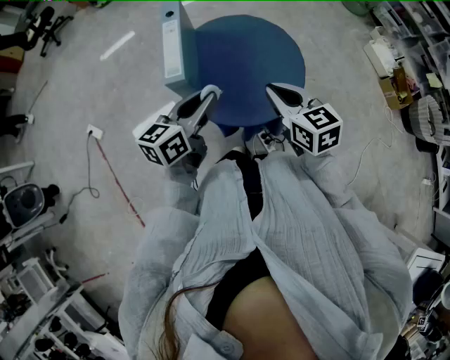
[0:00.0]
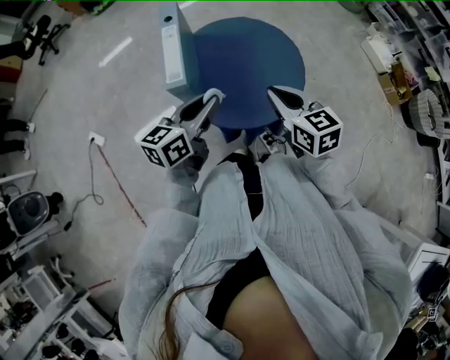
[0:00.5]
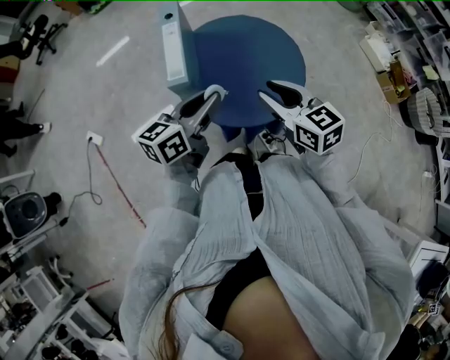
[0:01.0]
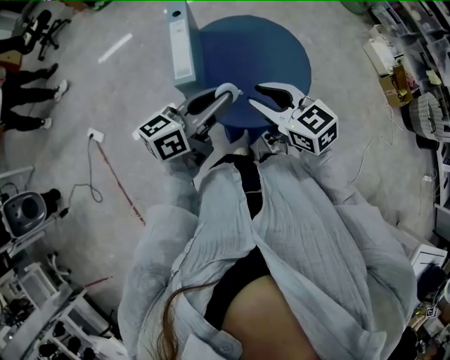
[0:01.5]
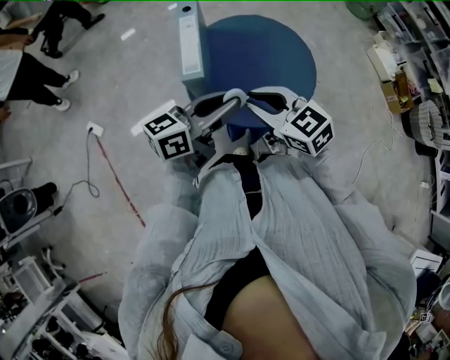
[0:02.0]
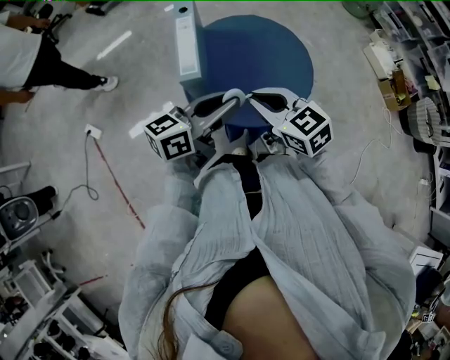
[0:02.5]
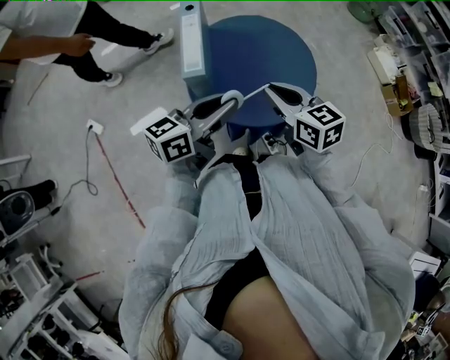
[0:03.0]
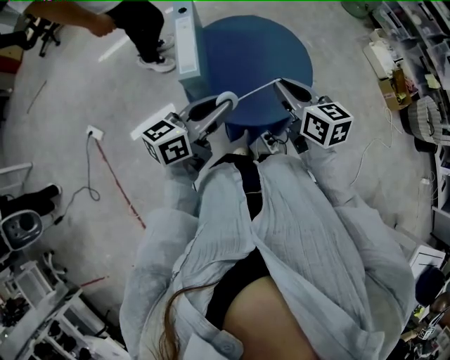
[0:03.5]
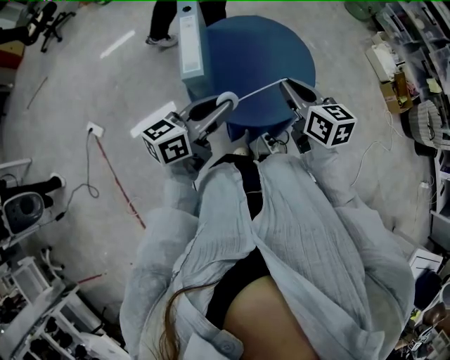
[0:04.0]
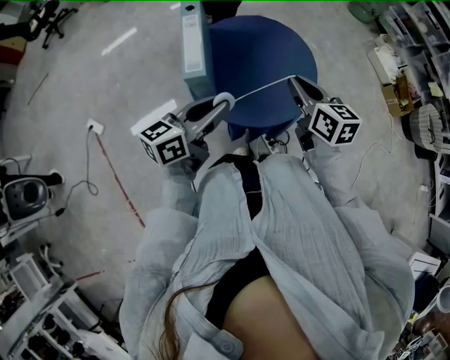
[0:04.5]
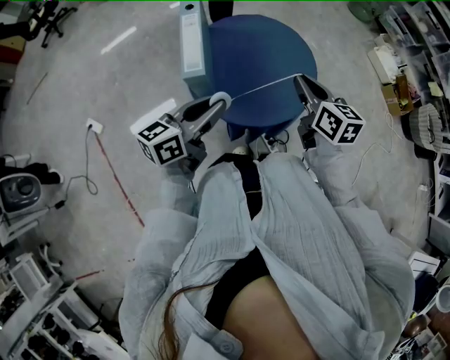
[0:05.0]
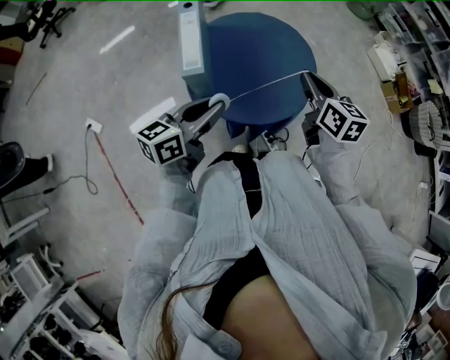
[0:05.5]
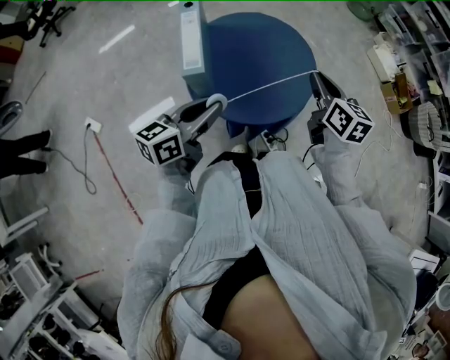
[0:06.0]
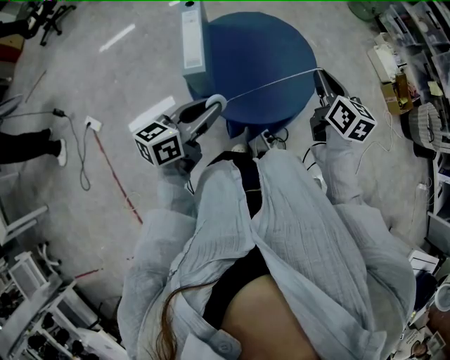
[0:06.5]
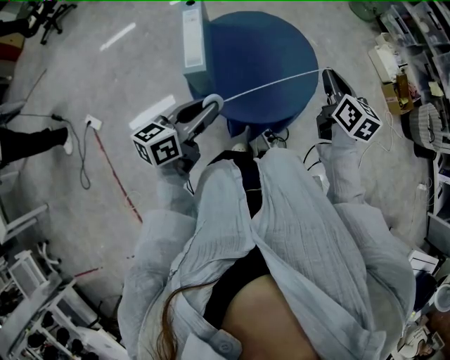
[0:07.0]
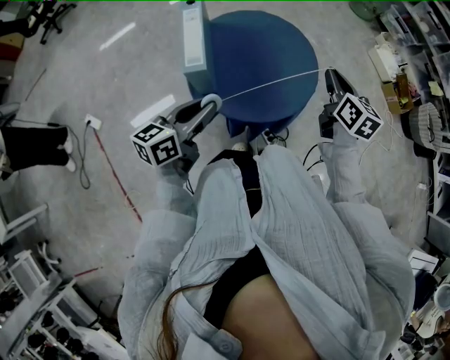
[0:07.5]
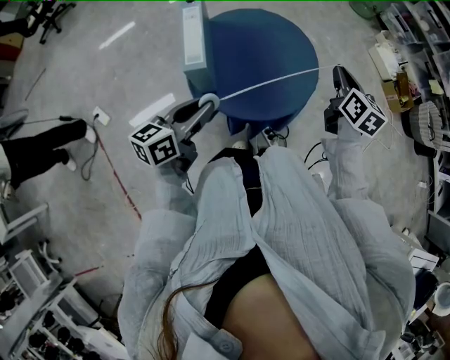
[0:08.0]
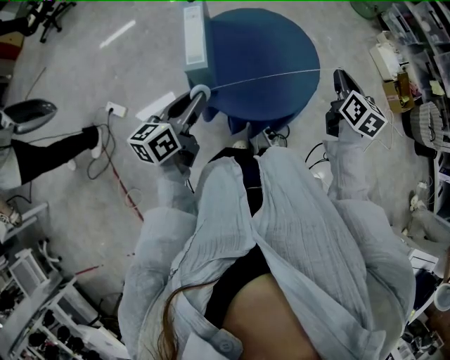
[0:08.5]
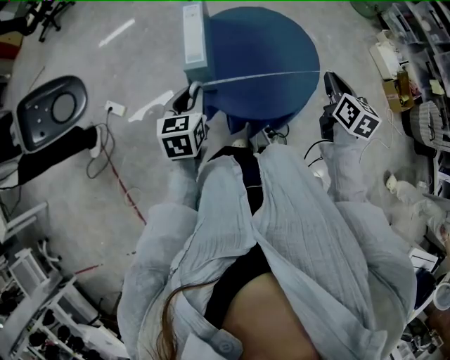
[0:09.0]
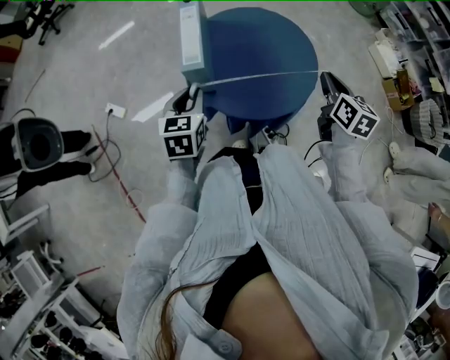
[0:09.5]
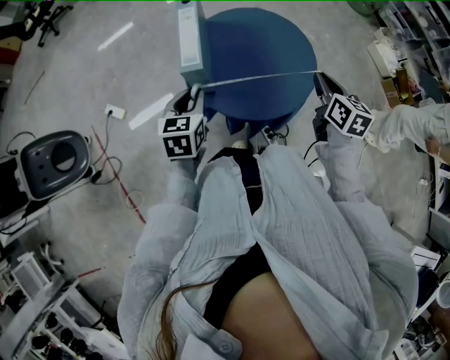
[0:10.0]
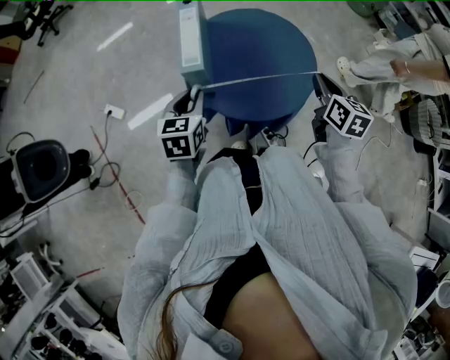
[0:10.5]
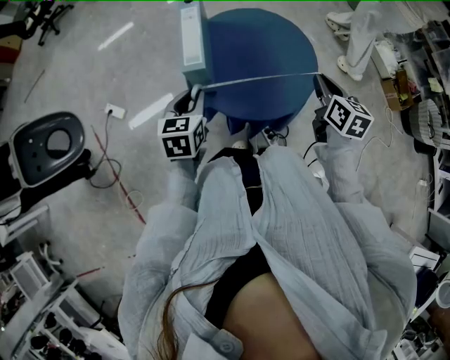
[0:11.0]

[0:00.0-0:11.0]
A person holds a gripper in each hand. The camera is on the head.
0:00.0 to 0:02.0: The left gripper turns by about 20 degrees. The right gripper moves to the left, some 10 cm, and changes its angle by about 20 degrees.
0:02.0 to 0:03.5: The right gripper is displaced to the right and forward by approximately 10 cm, and changes its angle by approximately 30 degrees.
0:03.5 to 0:05.5: The right gripper heads to the right, covering about 5 cm.
0:05.5 to 0:07.5: The right gripper goes some 5 cm to the right.
0:07.5 to 0:09.0: The left gripper goes approximately 5 cm to the left, and changes its angle by roughly 40 degrees.
0:09.0 to 0:11.0: There are only small adjustments of the grippers.

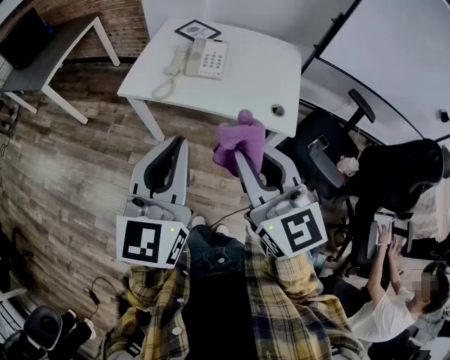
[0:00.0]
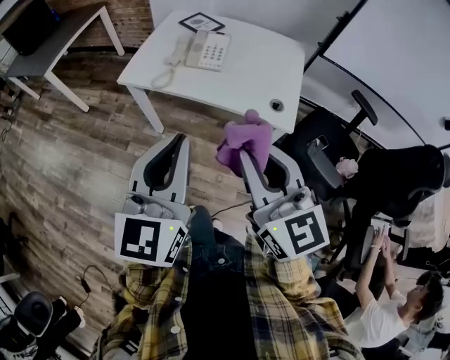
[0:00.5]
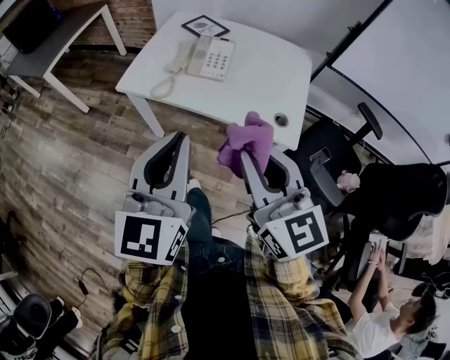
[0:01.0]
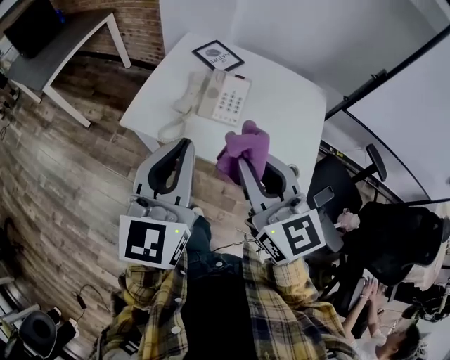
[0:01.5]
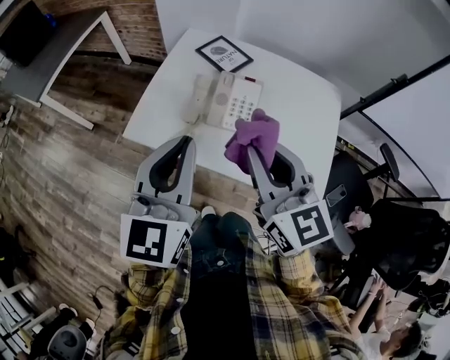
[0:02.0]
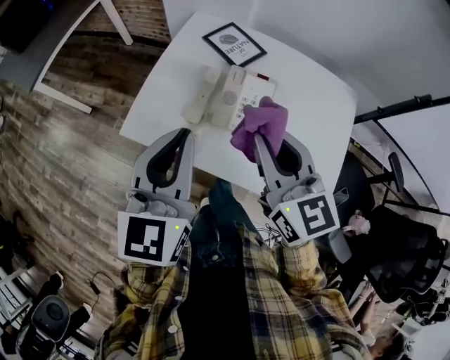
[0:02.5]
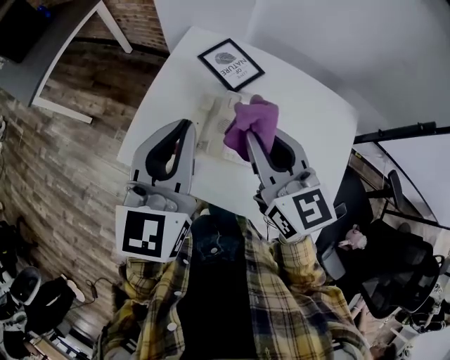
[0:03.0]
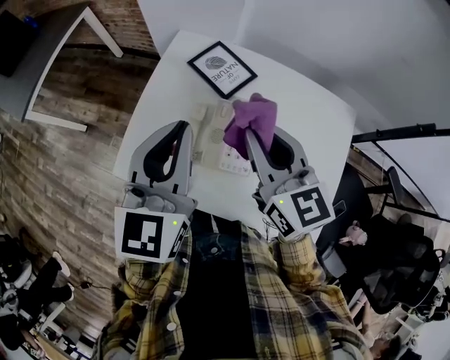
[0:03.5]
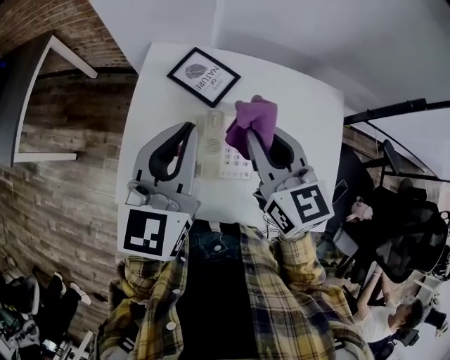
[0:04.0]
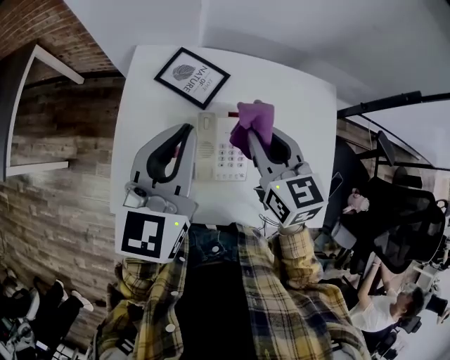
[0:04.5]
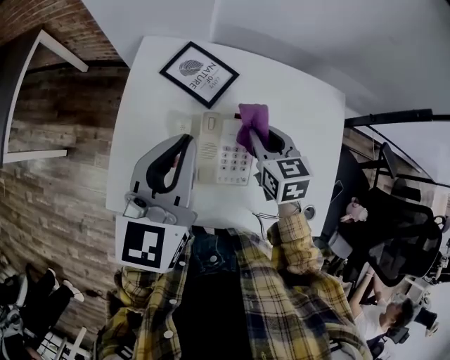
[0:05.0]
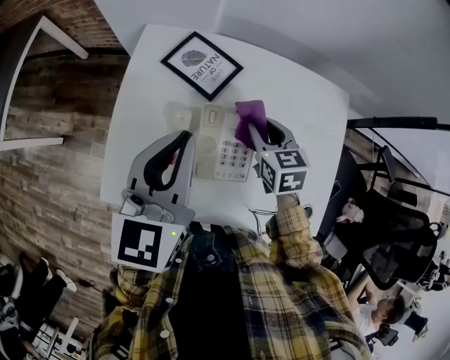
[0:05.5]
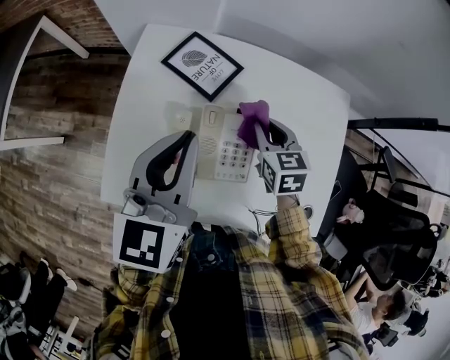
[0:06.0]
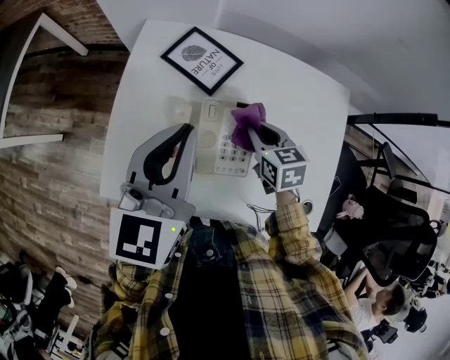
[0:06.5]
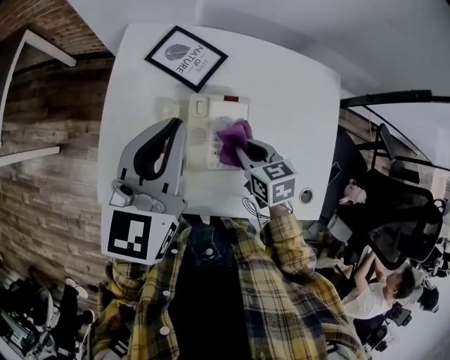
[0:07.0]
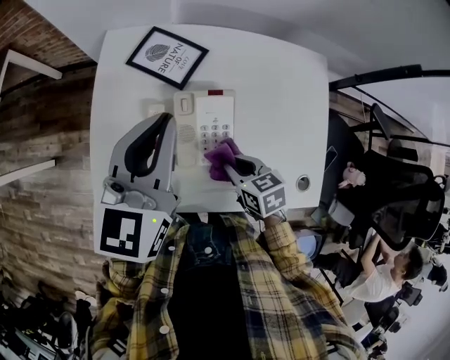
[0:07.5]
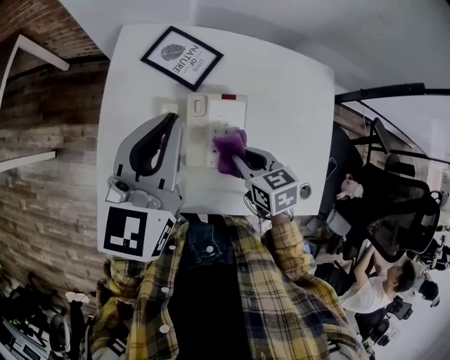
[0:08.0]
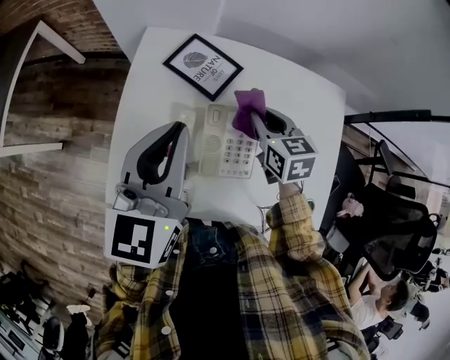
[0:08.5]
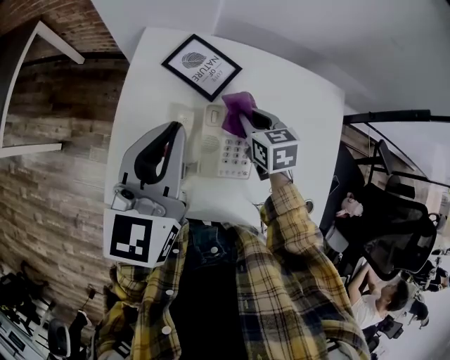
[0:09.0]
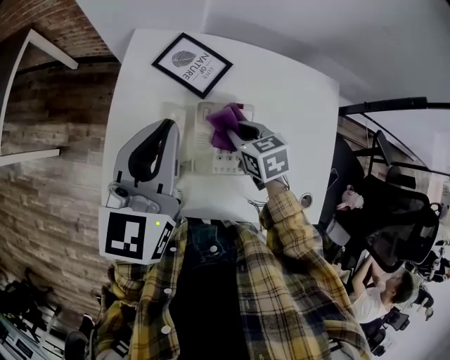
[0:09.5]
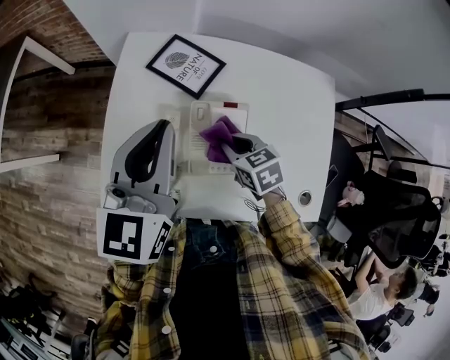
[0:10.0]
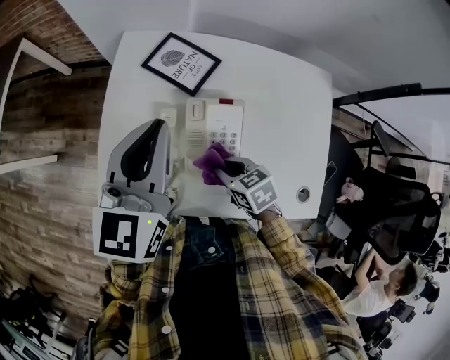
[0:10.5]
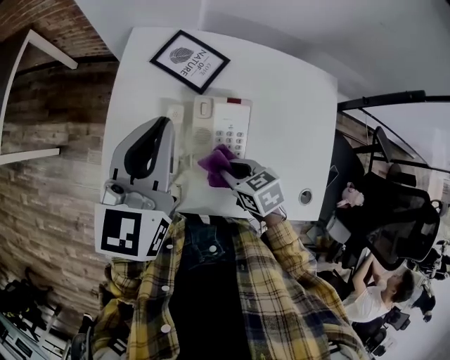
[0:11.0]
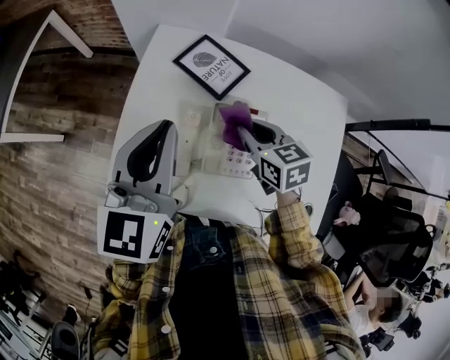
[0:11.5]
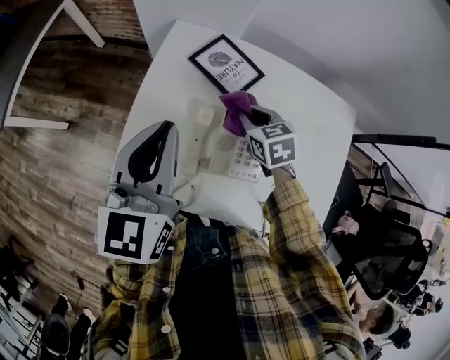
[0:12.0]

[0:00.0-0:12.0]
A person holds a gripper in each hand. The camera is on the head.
0:00.0 to 0:02.0: The two grippers go some 30 cm forward.
0:02.0 to 0:04.0: Both grippers move forward, some 25 cm.
0:04.0 to 0:06.0: The left gripper moves downward, some 5 cm. Meanwhile the right gripper shifts approximately 20 cm downward, and turns by some 30 degrees.
0:06.0 to 0:08.0: The right gripper heads backward, covering some 10 cm.
0:08.0 to 0:10.0: The right gripper is displaced forward by about 5 cm.
0:10.0 to 0:12.0: The right gripper goes about 10 cm forward, while the left gripper heads to the left, covering approximately 5 cm.

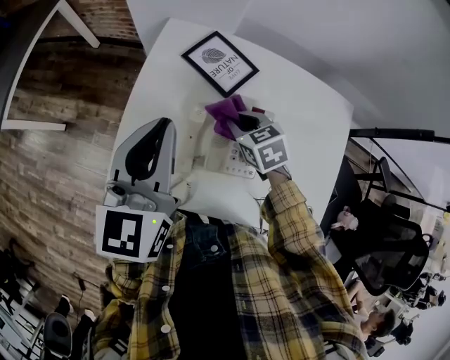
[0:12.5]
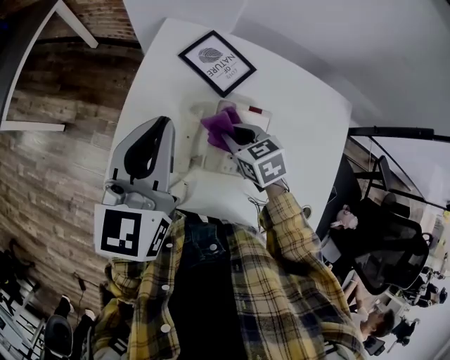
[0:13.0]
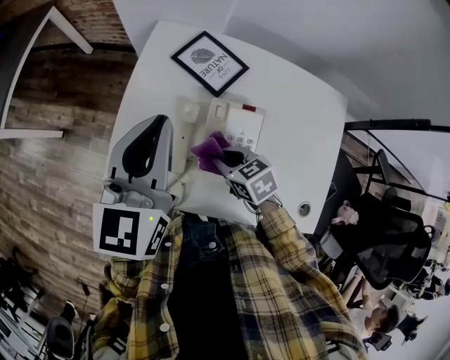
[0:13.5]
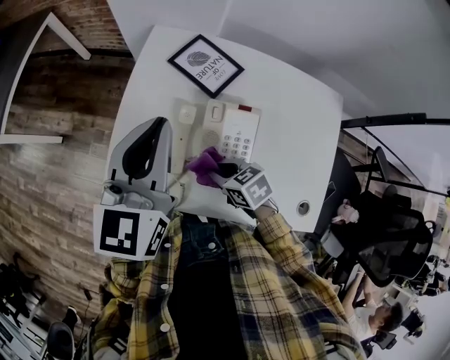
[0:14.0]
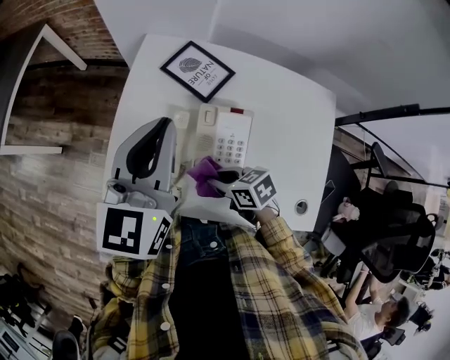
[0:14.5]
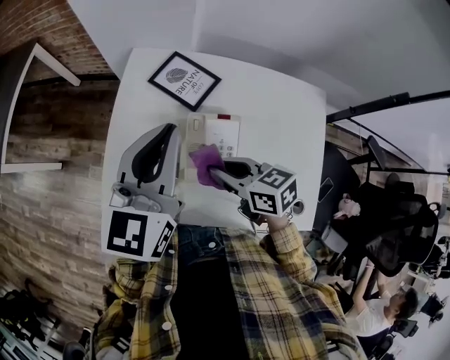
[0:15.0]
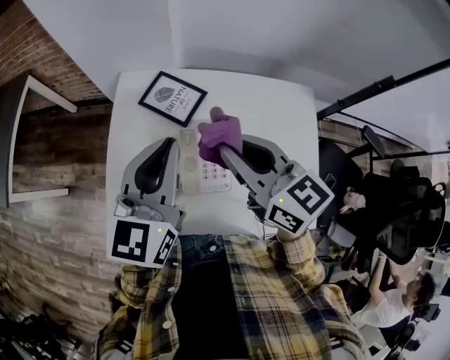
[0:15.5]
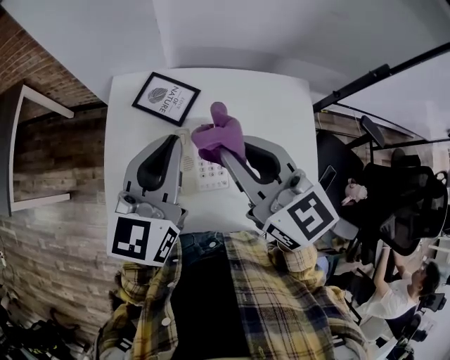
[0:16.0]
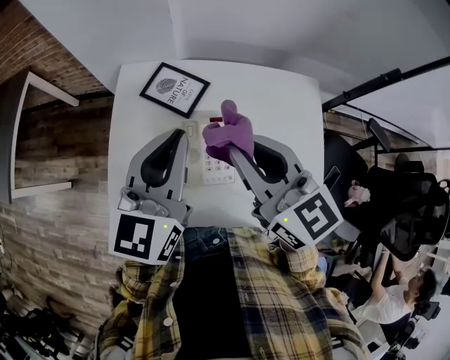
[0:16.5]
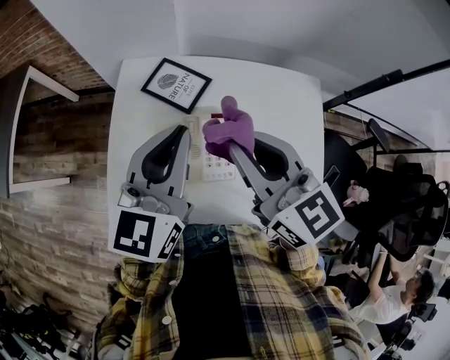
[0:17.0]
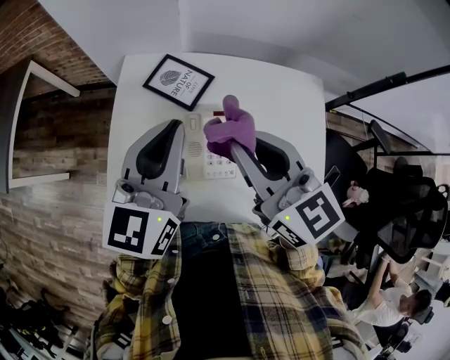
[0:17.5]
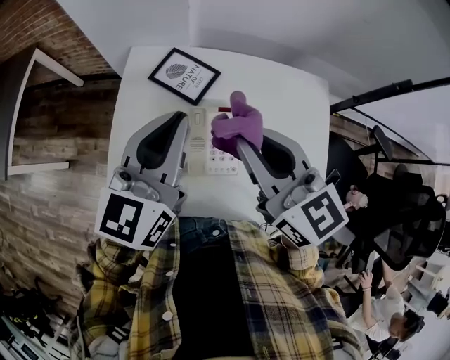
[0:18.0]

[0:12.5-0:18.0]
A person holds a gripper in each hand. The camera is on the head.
0:12.5 to 0:14.5: The right gripper moves backward and to the left, about 15 cm, and turns by approximately 30 degrees.
0:14.5 to 0:16.0: The left gripper shifts by about 10 cm, while the right gripper moves upward, some 30 cm, and points its fingers roughly 30 degrees further upward.
0:16.0 to 0:18.0: The grippers move only a little.
